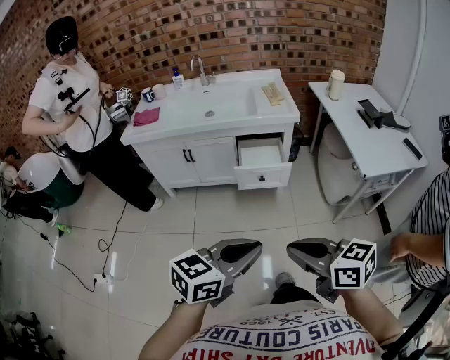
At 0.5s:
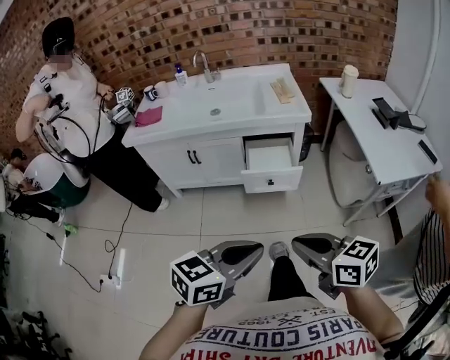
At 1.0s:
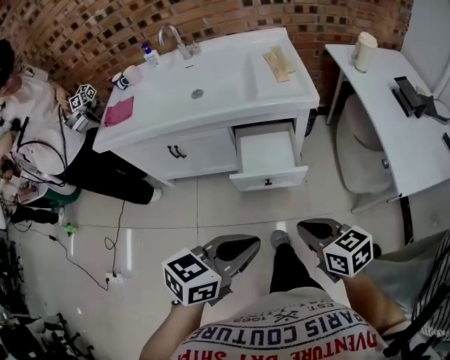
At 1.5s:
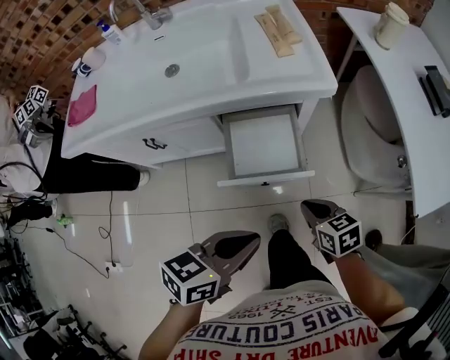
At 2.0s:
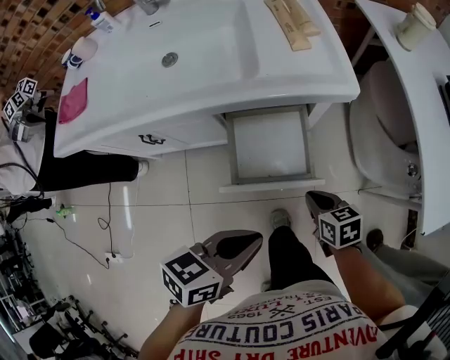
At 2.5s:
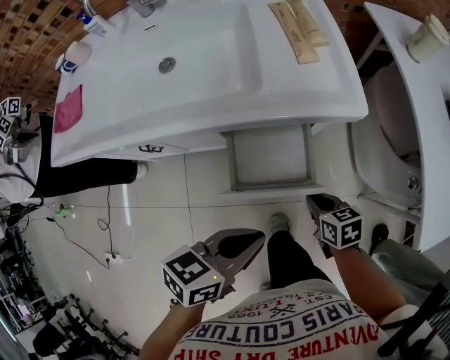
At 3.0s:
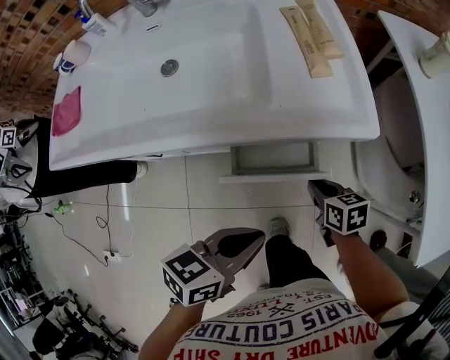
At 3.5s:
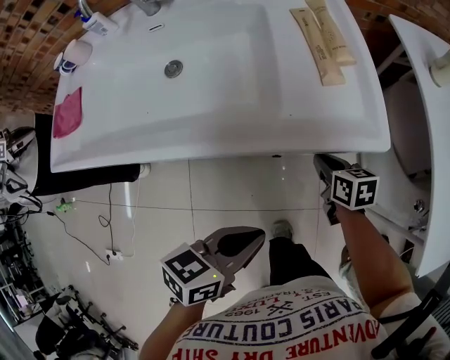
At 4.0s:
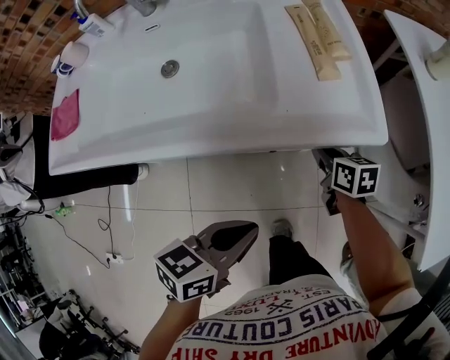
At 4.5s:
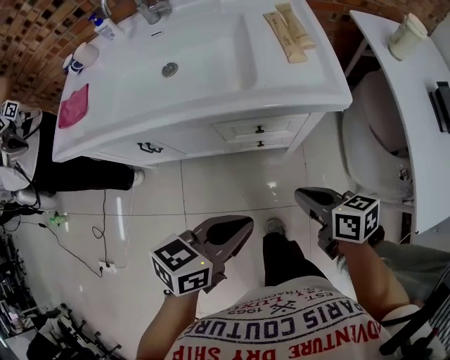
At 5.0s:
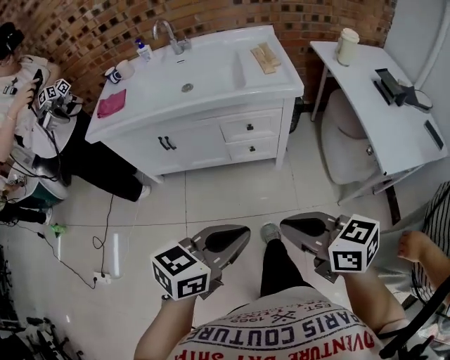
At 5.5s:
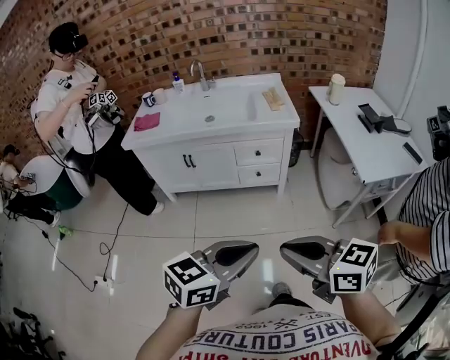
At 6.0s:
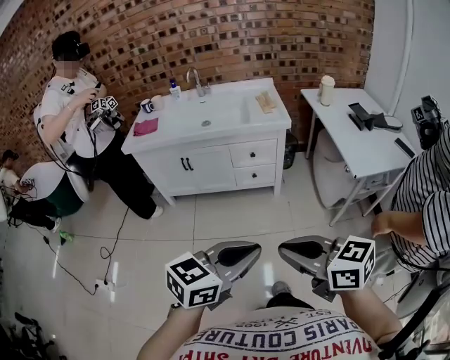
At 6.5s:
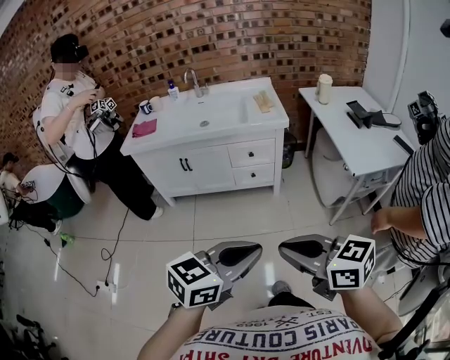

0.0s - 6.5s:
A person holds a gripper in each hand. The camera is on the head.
0.0s - 2.0s: The two grippers travel together, forward, approximately 40 cm. The right gripper shifts about 35 cm downward, and points its fingers approximately 30 degrees further downward. The left gripper heads downward, covering approximately 20 cm, and turns by roughly 30 degrees.
2.0s - 4.5s: The right gripper travels upward by about 10 cm, travels forward and back again, some 20 cm each way, and rotates some 20 degrees; the left gripper moves some 10 cm forward and comes back.
4.5s - 6.5s: The two grippers travel together, backward, approximately 50 cm. Both grippers move upward, some 25 cm. The right gripper rotates roughly 30 degrees, while the left gripper rotates roughly 30 degrees.

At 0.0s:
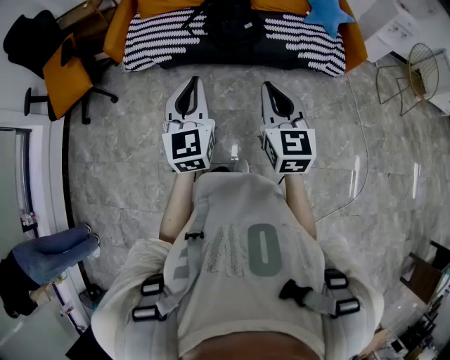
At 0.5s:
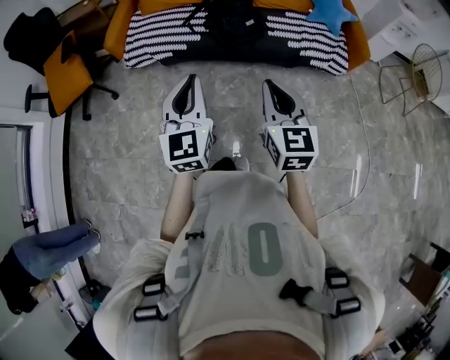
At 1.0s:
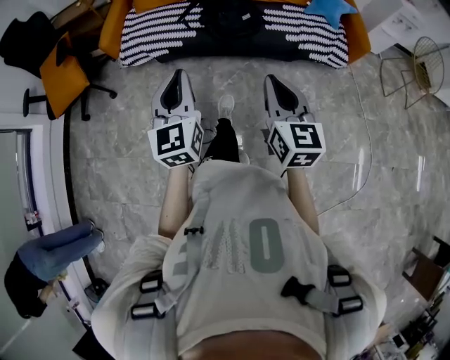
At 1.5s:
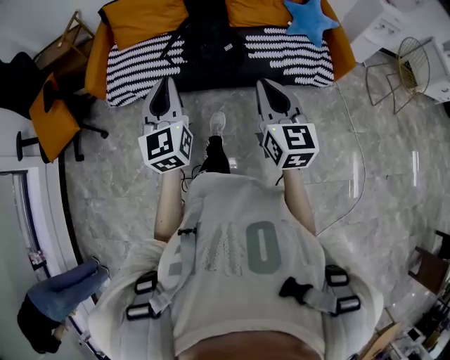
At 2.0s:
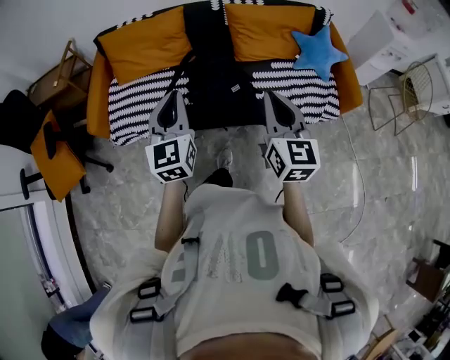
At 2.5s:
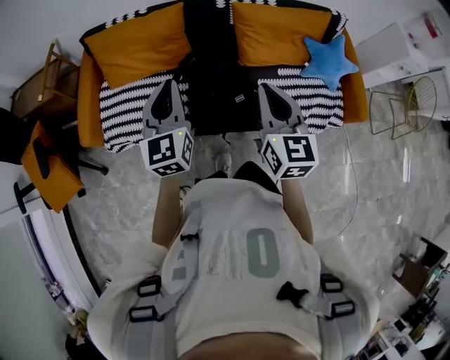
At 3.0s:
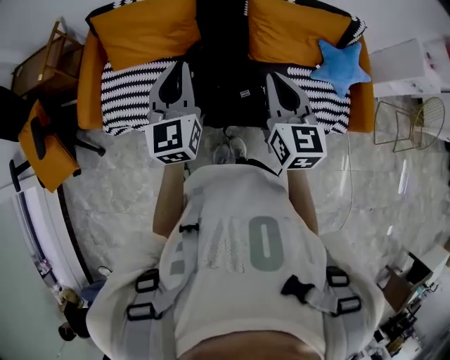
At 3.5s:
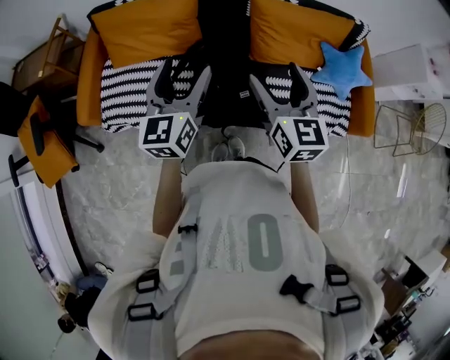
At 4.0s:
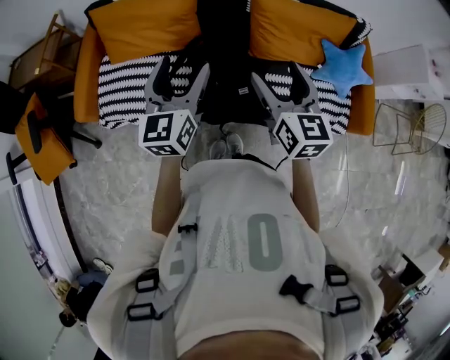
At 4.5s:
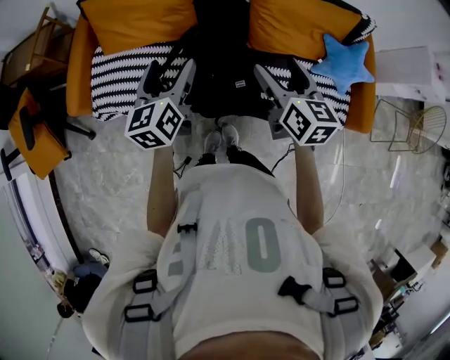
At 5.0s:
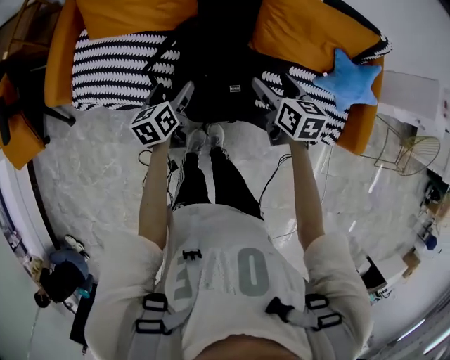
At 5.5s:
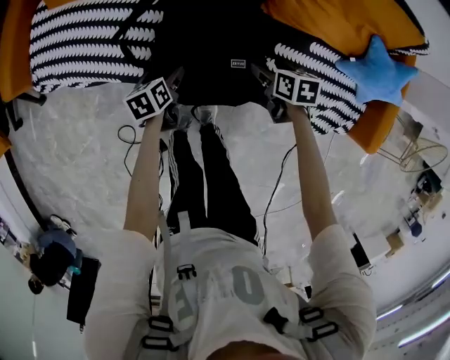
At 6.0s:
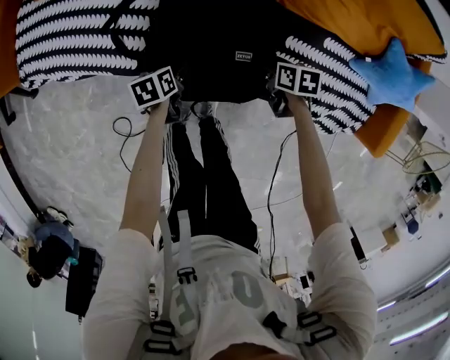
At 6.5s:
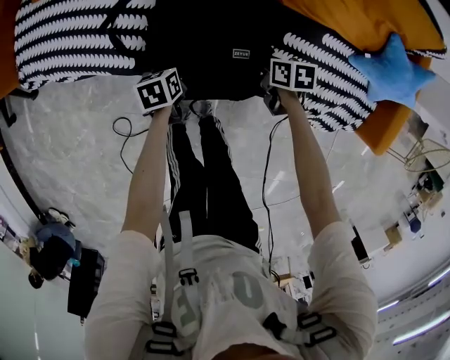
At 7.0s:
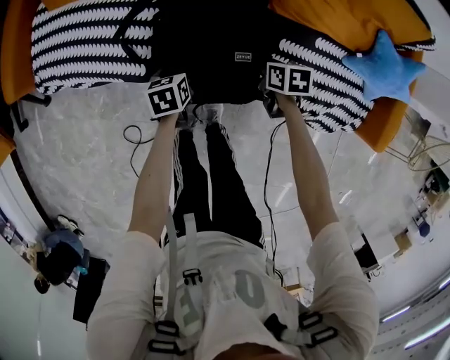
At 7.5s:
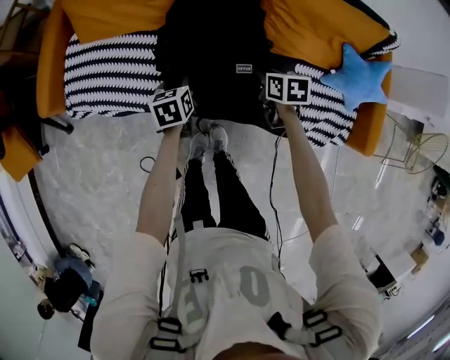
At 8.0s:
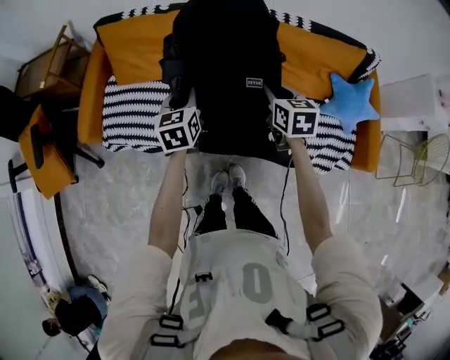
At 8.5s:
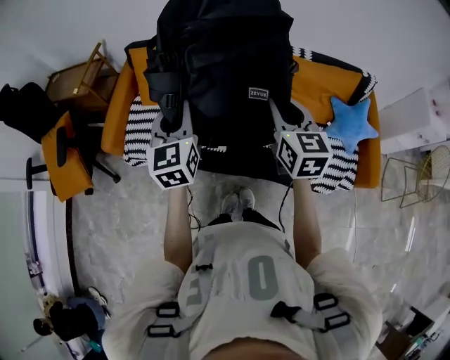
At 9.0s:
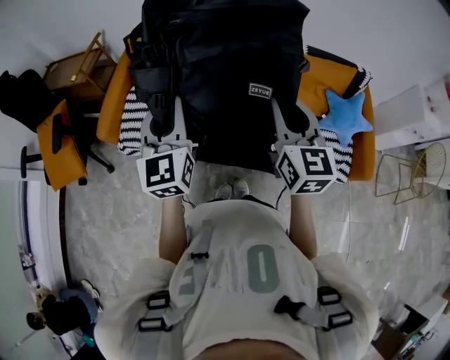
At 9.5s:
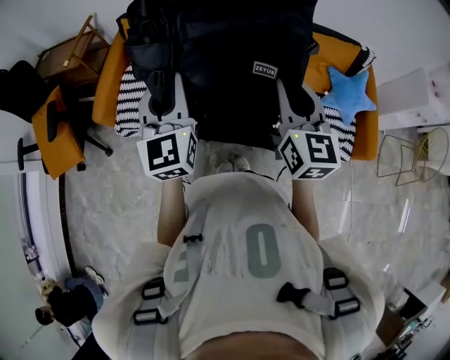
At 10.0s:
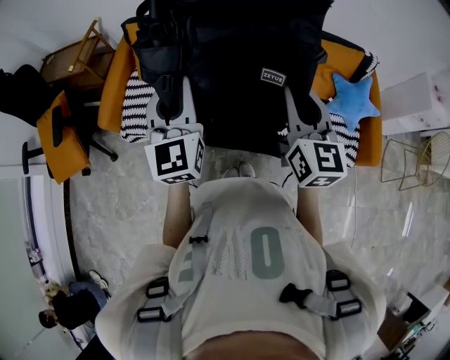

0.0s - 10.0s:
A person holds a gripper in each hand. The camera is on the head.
0.0s - 2.0s: Both grippers move forward, approximately 40 cm.
2.0s - 4.0s: Both grippers travel together forward, about 25 cm. The right gripper opens. Meanwhile the left gripper opens.
4.0s - 6.0s: The grippers both shift downward by some 60 cm. The left gripper points its fingers about 60 degrees further downward; the right gripper points its fingers approximately 50 degrees further downward.
6.0s - 8.0s: The two grippers go approximately 50 cm upward. The right gripper swivels roughly 40 degrees, and closes. The left gripper points its fingers some 30 degrees further upward, and closes.
8.0s - 10.0s: The two grippers go about 30 cm upward and backward. The right gripper tilts its fingers roughly 30 degrees upward. Meanwhile the left gripper tips its fingers upward by approximately 30 degrees.

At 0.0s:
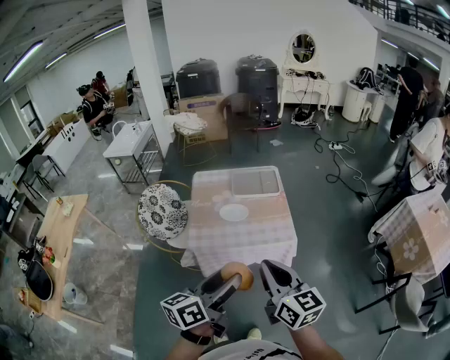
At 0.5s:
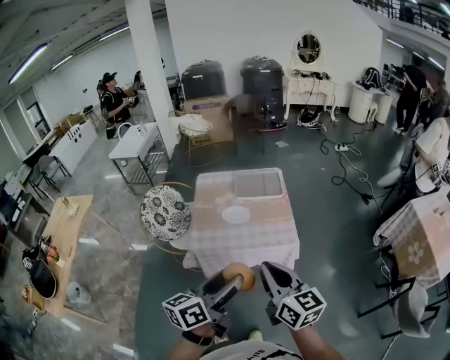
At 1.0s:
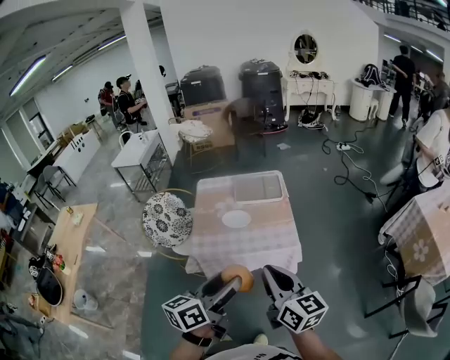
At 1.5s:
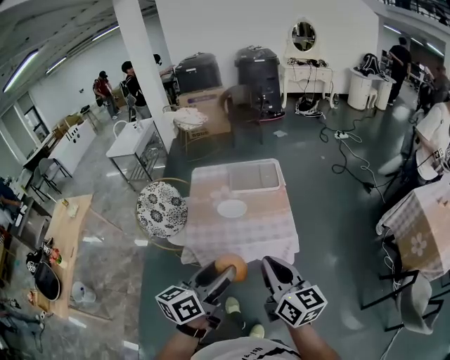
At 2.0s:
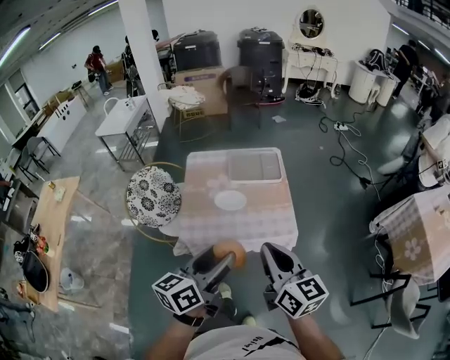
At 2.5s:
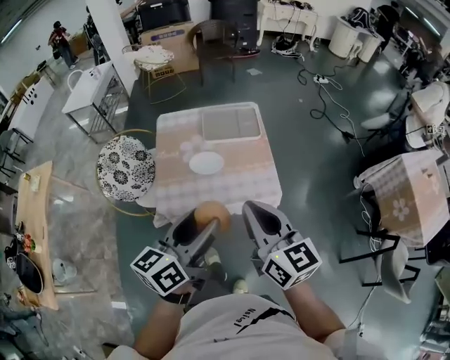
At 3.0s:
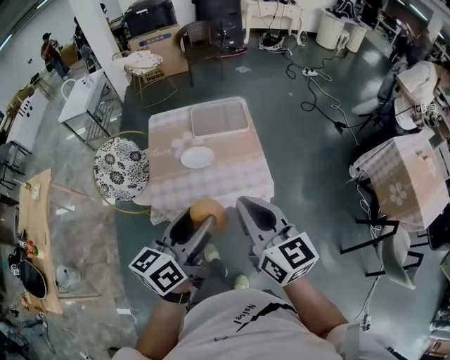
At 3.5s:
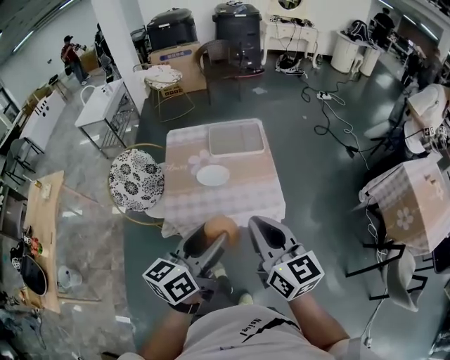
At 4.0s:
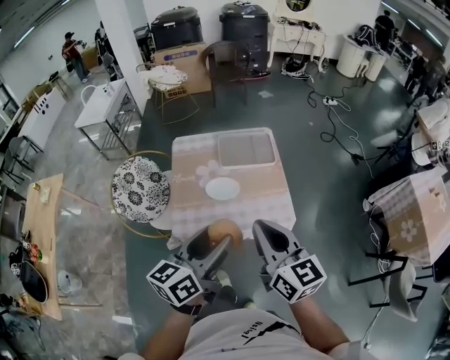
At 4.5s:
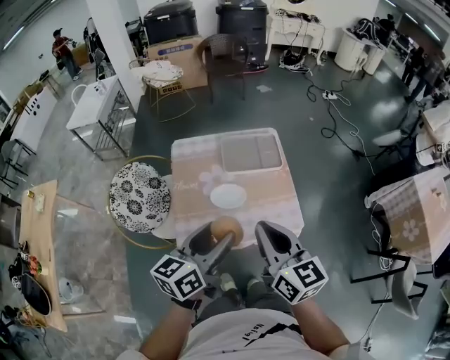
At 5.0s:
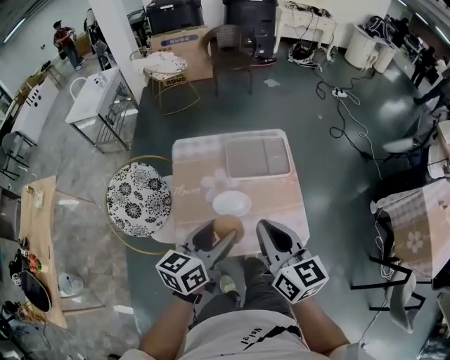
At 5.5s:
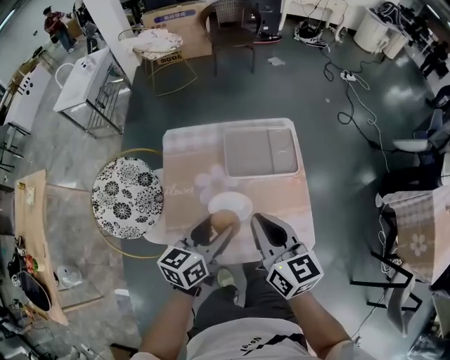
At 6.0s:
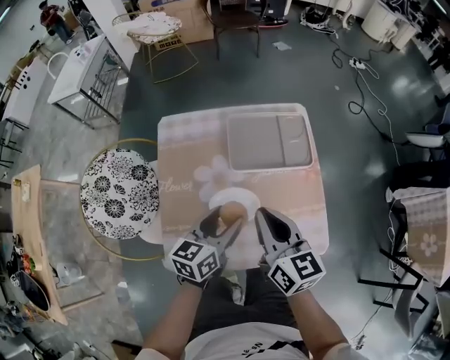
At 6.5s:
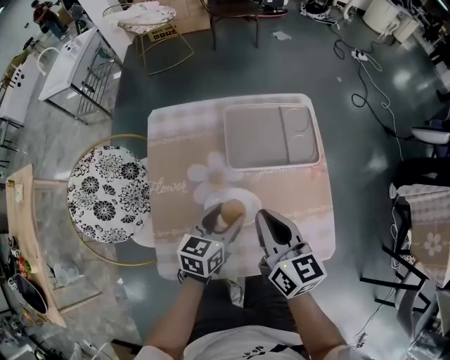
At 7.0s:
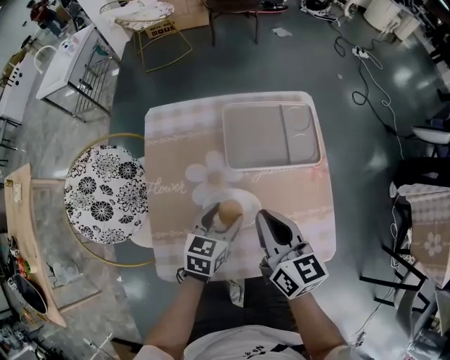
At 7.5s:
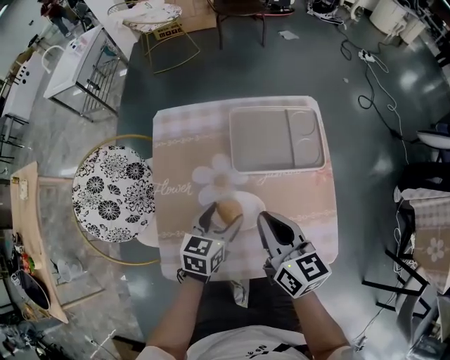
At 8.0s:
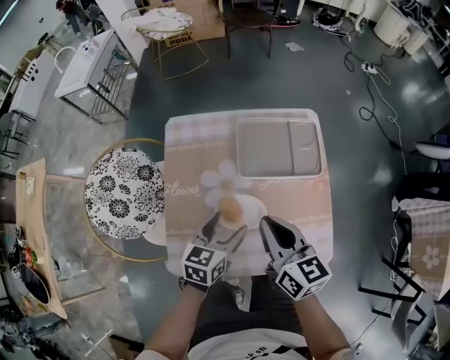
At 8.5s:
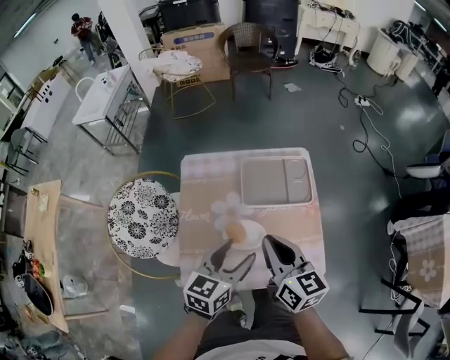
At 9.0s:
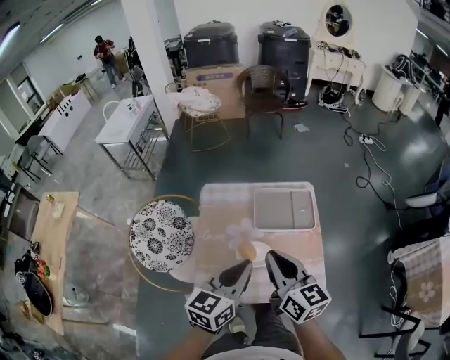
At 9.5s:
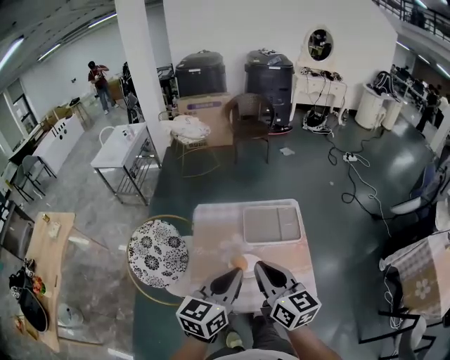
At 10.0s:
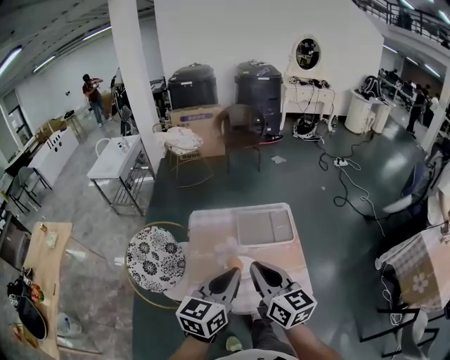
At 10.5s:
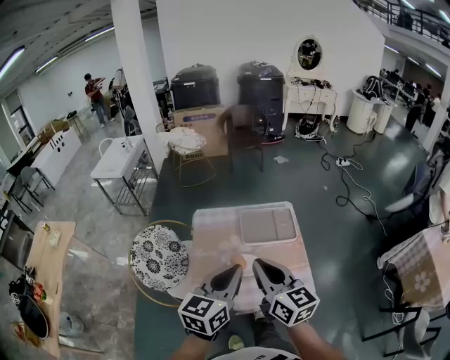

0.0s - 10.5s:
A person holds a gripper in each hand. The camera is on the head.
0.0s - 2.0s: The two grippers go approximately 10 cm forward.
2.0s - 4.0s: The left gripper moves forward and backward over roughly 5 cm, changing direction 2 times, while the right gripper goes forward and backward, approximately 5 cm each way, reversing 2 times.
4.0s - 6.5s: Both grippers travel together downward and forward, about 40 cm. The left gripper changes its angle by approximately 30 degrees.
6.5s - 8.5s: The grippers both shift upward by about 15 cm.
8.5s - 10.5s: The grippers both shift upward and backward by some 20 cm. The left gripper closes.
